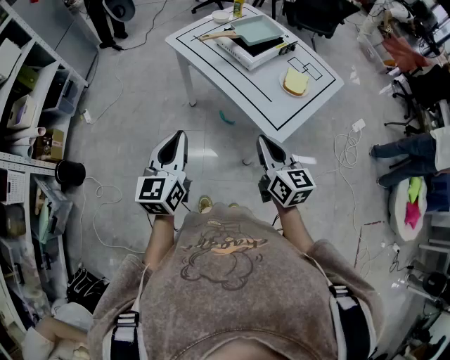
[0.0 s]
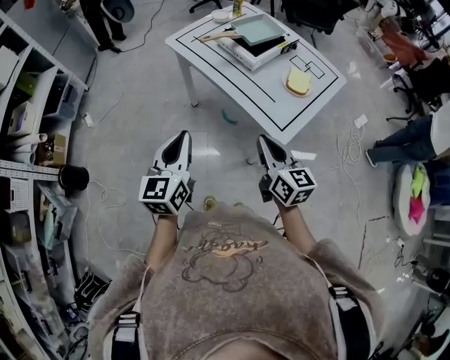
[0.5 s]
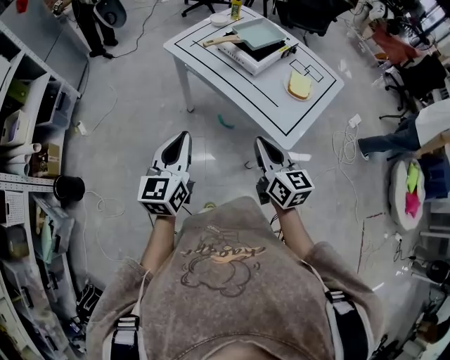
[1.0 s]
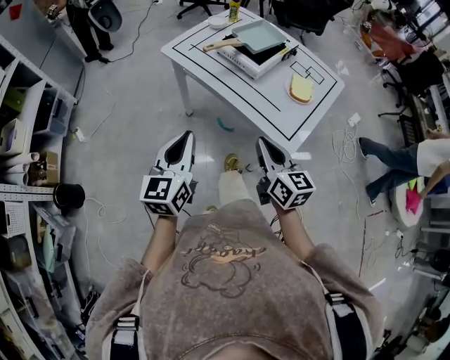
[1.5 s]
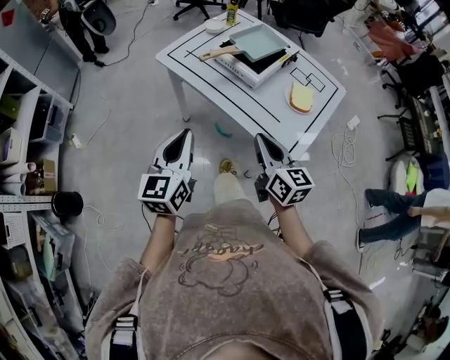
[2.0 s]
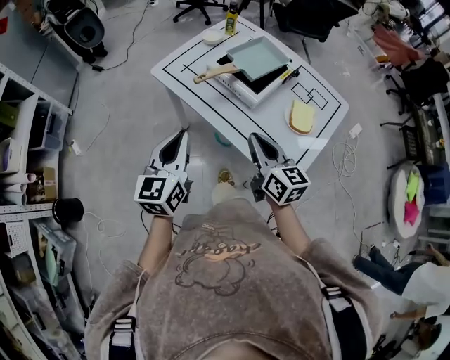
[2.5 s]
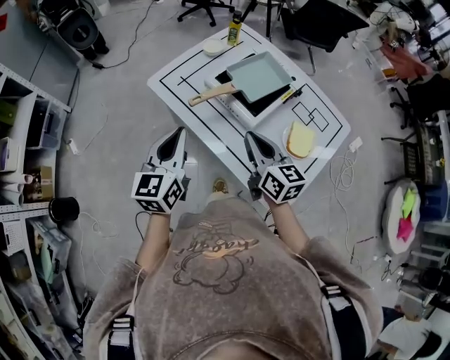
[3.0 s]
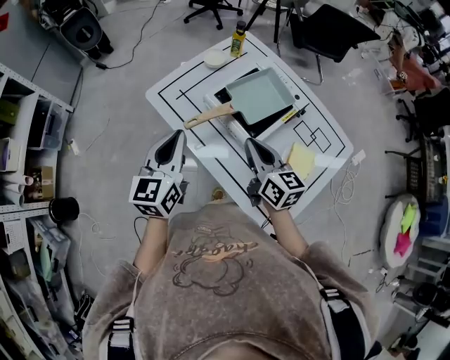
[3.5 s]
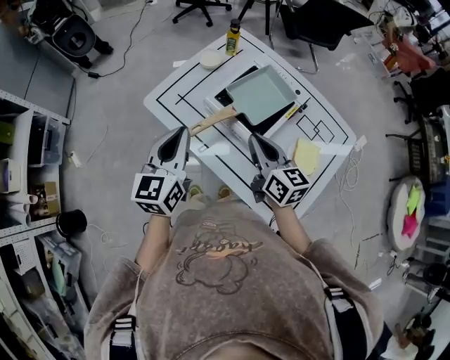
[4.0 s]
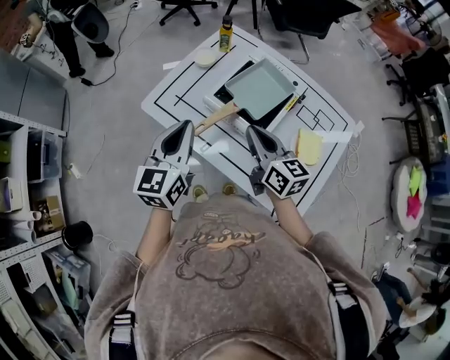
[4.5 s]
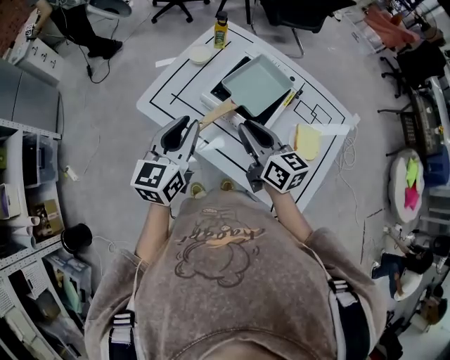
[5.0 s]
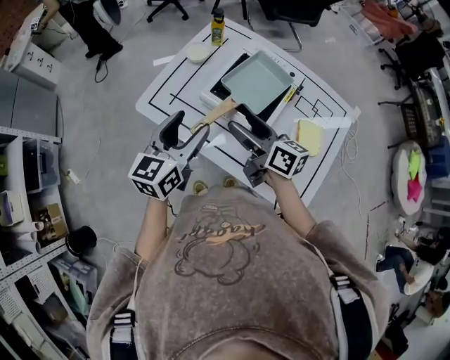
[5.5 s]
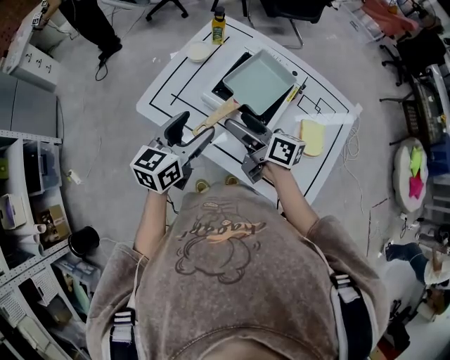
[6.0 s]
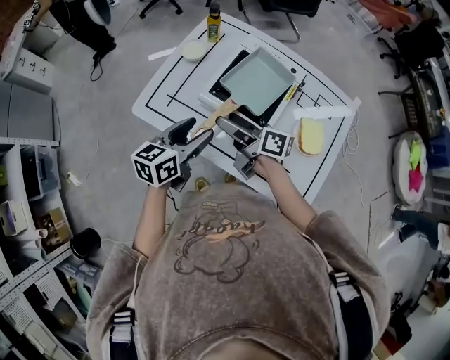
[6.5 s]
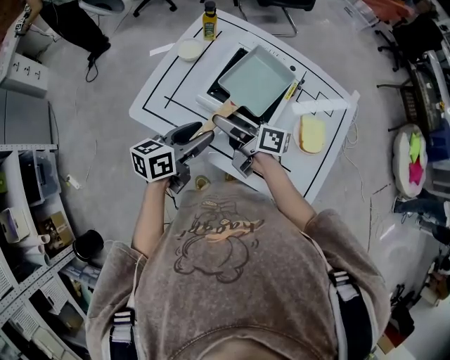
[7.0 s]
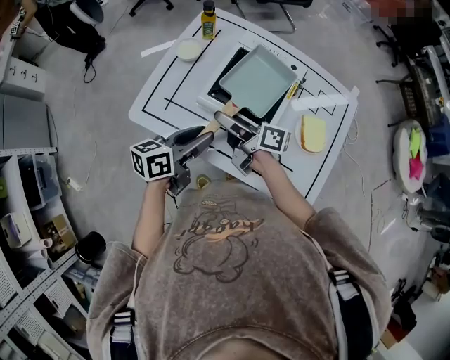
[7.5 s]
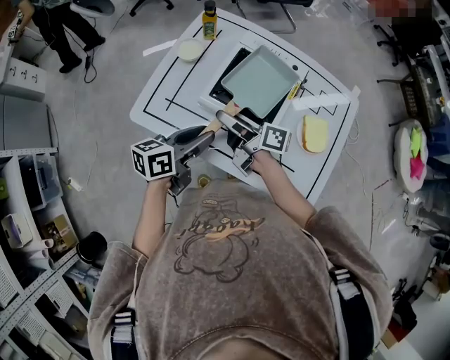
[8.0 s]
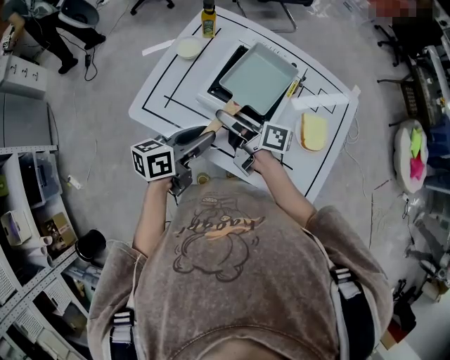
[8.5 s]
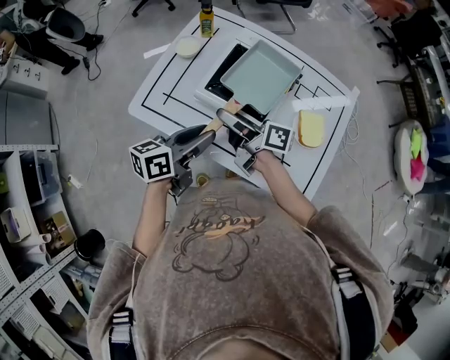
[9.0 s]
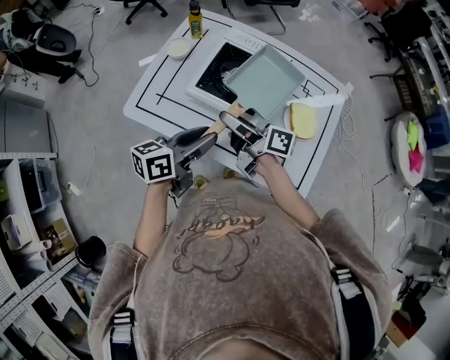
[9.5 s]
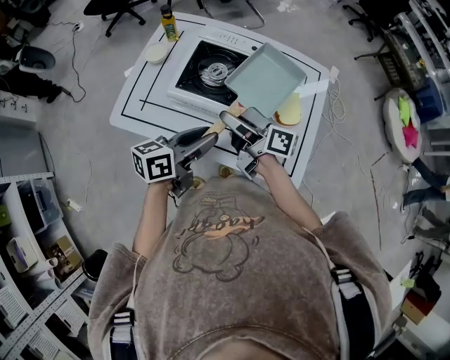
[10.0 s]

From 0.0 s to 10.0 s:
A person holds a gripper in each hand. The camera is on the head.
From 0.0 s to 2.0 s: Both grippers move forward, roughly 15 cm.
From 2.0 s to 4.0 s: Both grippers travel together forward, about 25 cm.
From 4.0 s to 6.0 s: The right gripper goes about 5 cm to the left, swivels some 30 degrees, and opens its fingers; the left gripper travels downward by about 5 cm, turns by some 30 degrees, and opens its fingers.
From 6.0 s to 8.0 s: The right gripper ends up roughly 5 cm from where it was, and closes its fingers. The left gripper travels downward by roughly 5 cm, turns by some 30 degrees, and closes.
From 8.0 s to 10.0 s: Both grippers move to the right and backward, roughly 10 cm.

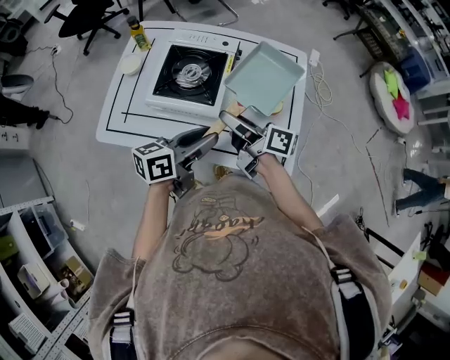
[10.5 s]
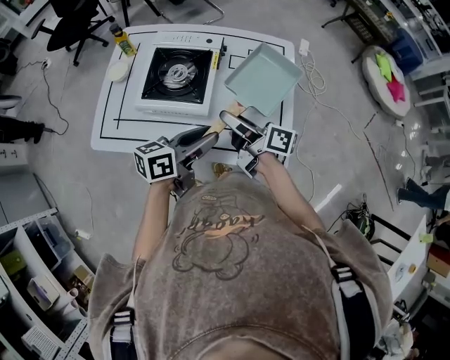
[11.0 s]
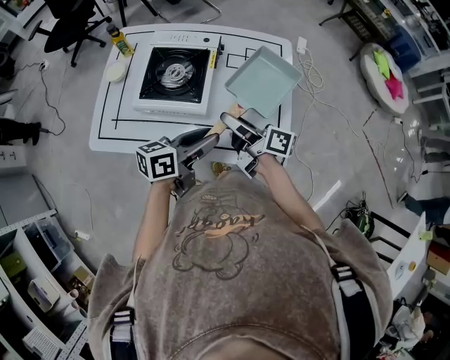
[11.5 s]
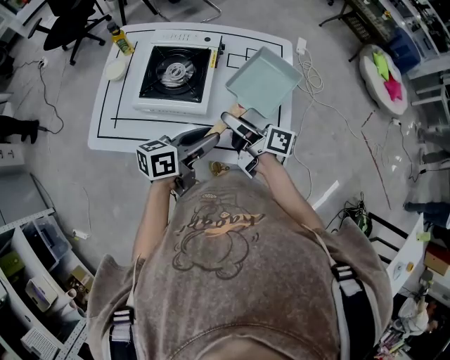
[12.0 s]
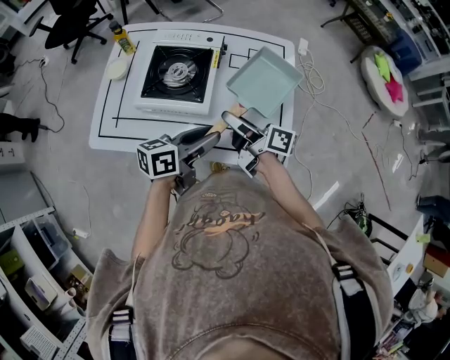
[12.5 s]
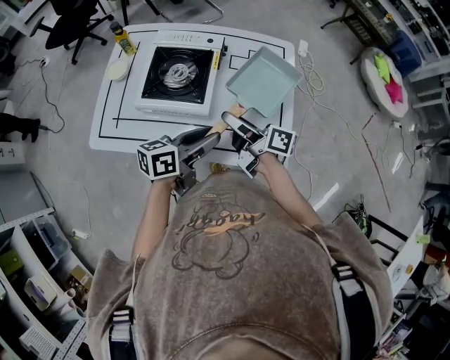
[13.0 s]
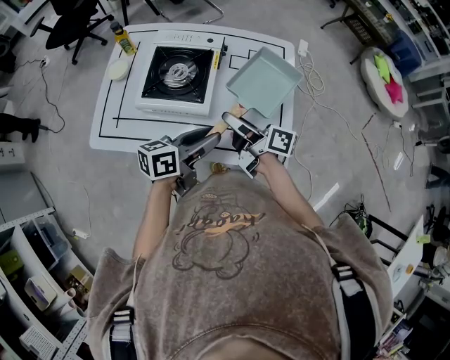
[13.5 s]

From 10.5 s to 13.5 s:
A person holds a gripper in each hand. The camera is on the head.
From 10.5 s to 12.0 s: The grippers make only small movements.
From 12.0 s to 13.5 s: Both grippers stay about where they are.

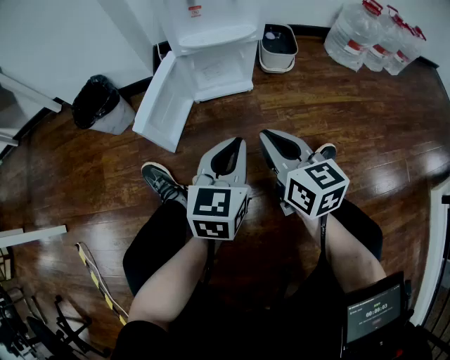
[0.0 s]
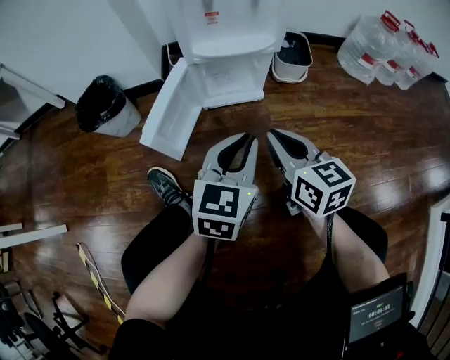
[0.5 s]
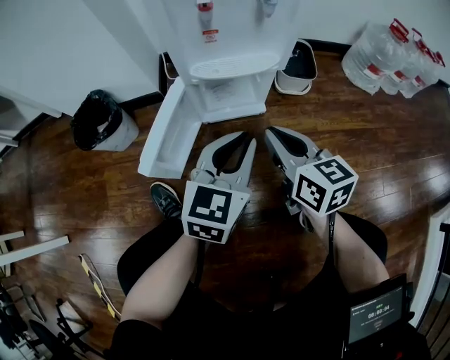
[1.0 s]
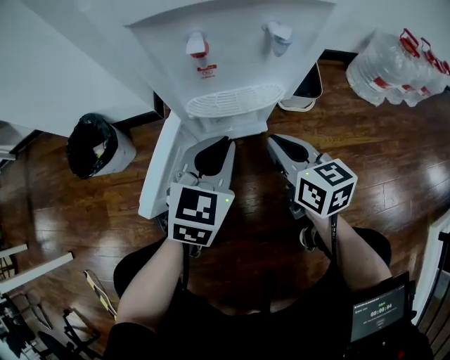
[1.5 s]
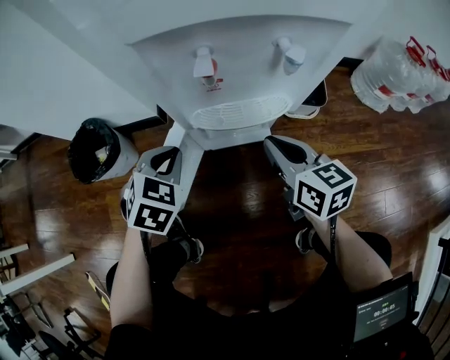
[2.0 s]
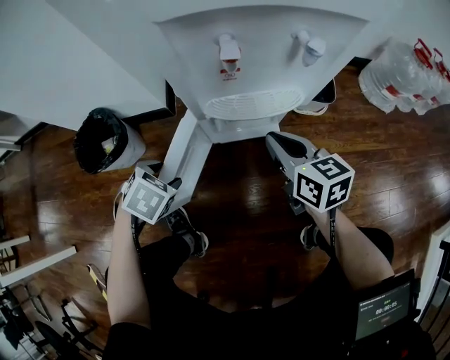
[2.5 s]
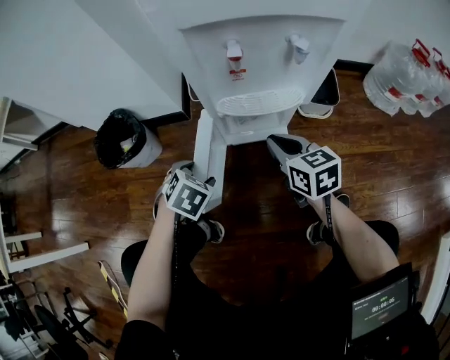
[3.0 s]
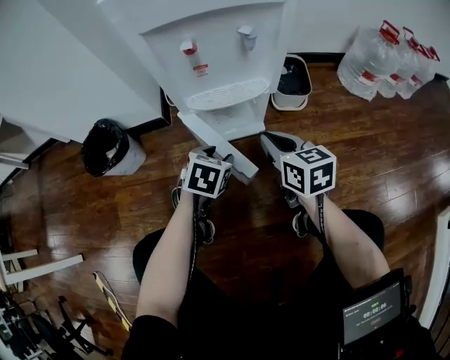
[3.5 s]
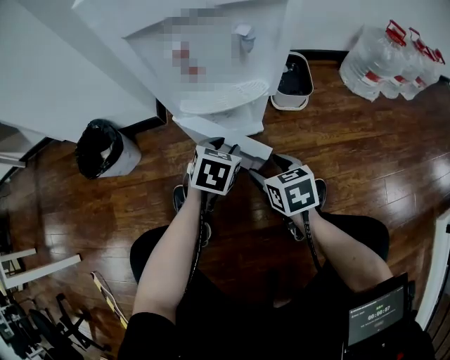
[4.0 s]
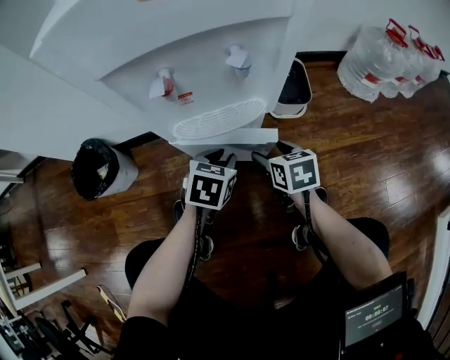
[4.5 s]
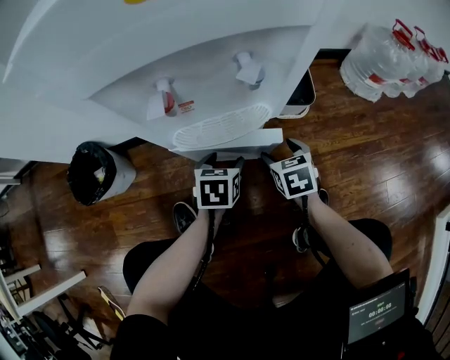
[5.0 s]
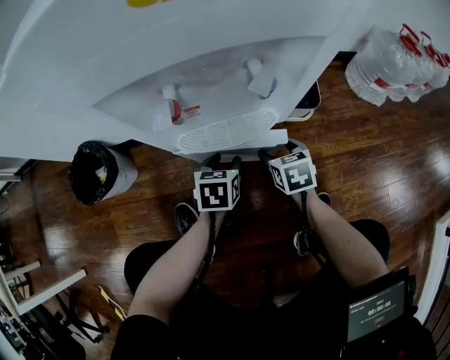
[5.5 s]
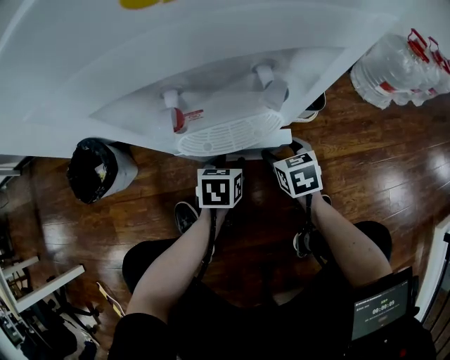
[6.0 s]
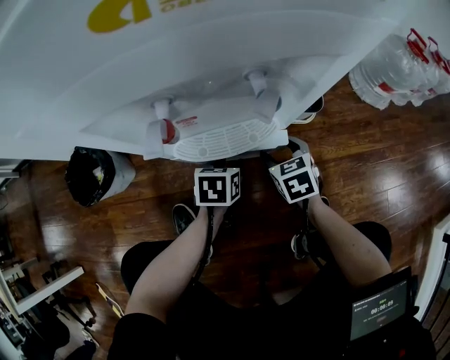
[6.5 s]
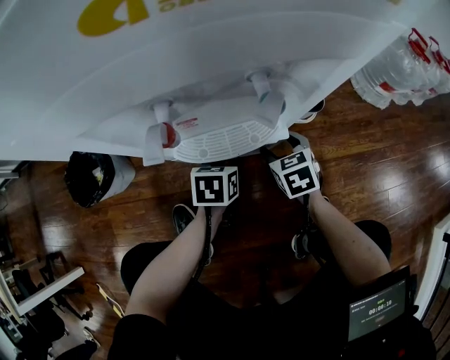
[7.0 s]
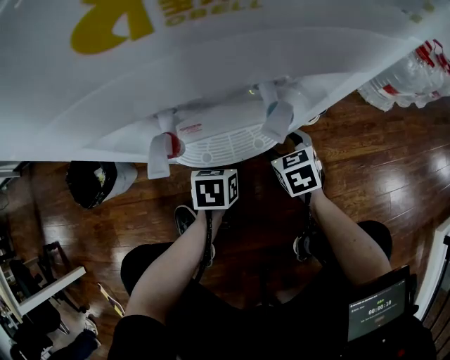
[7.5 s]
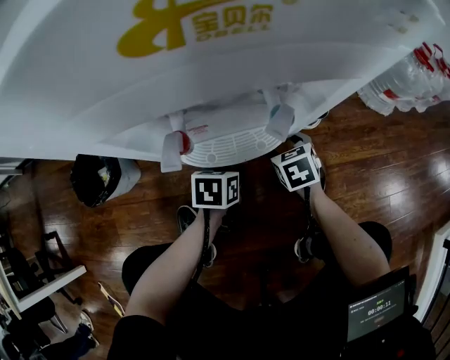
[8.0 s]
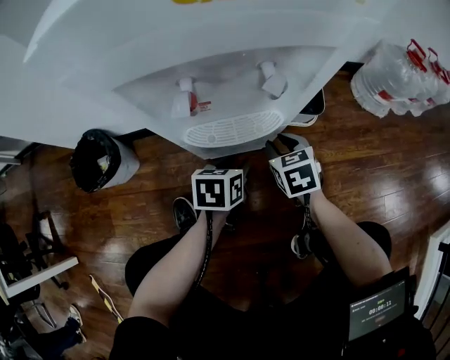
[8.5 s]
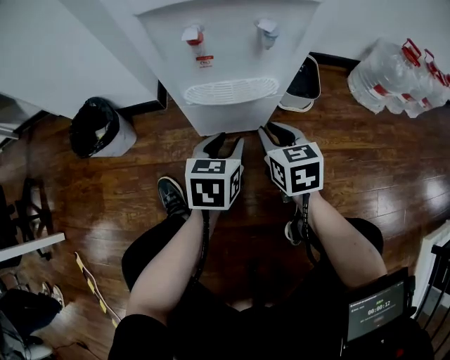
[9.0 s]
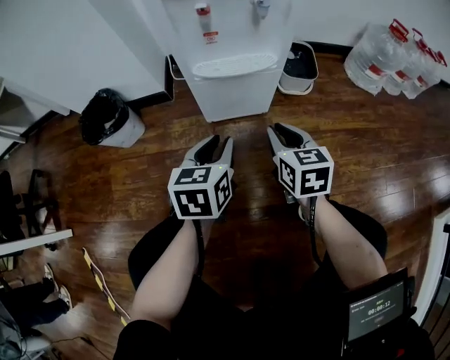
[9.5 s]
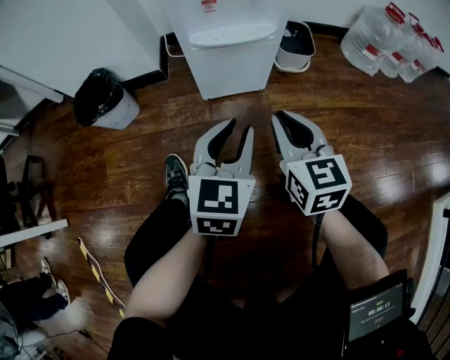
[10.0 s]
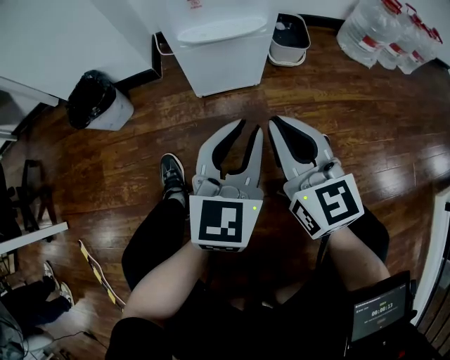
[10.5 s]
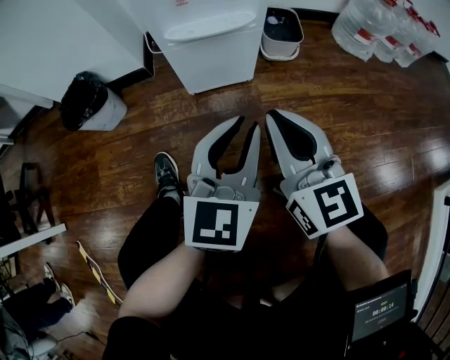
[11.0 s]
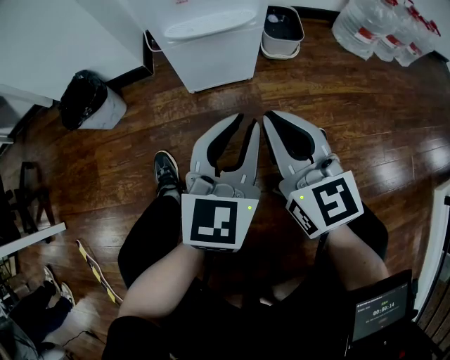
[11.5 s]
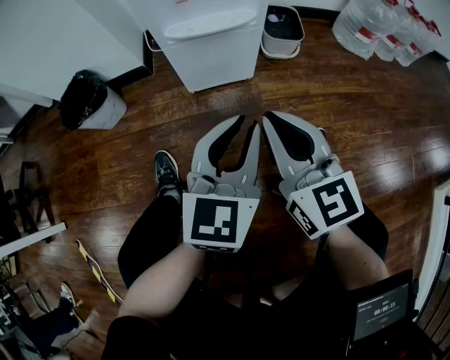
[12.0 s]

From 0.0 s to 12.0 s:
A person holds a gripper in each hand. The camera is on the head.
From 0.0 s to 2.0 s: The left gripper travels forward and to the left by approximately 30 cm, and tilts its fingers approximately 30 degrees downward. The right gripper travels forward by approximately 25 cm.
From 2.0 s to 4.0 s: The right gripper ends up some 15 cm from where it was, changes its angle by about 20 degrees, and opens up, while the left gripper shifts by approximately 15 cm, and opens its fingers.
From 4.0 s to 6.0 s: The left gripper is displaced downward and forward by approximately 10 cm, and changes its angle by approximately 20 degrees. The right gripper heads forward and downward, covering about 15 cm.
From 6.0 s to 8.0 s: There are only small adjustments of the grippers.
From 8.0 s to 10.0 s: Both grippers travel together backward and upward, roughly 30 cm. The left gripper points its fingers about 30 degrees further upward. The right gripper angles its fingers upward, by approximately 40 degrees, and closes.
From 10.0 s to 12.0 s: The right gripper shifts by some 5 cm, while the left gripper changes place by some 5 cm.

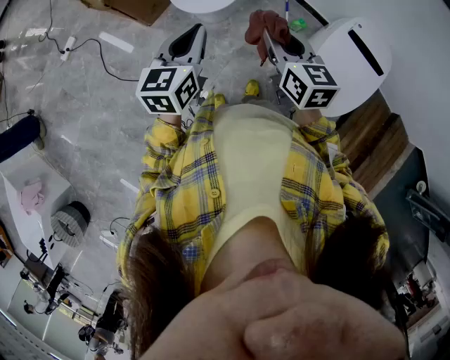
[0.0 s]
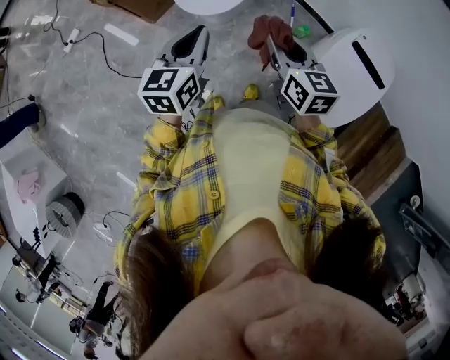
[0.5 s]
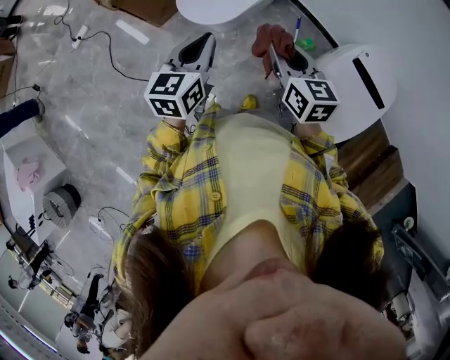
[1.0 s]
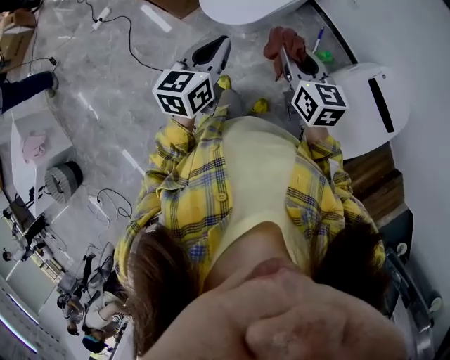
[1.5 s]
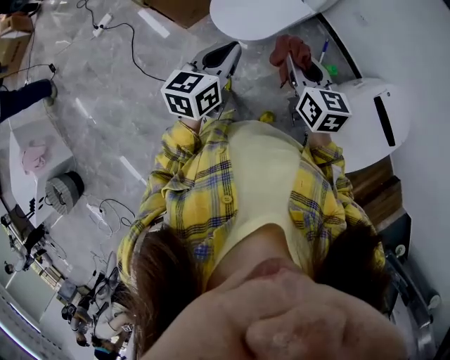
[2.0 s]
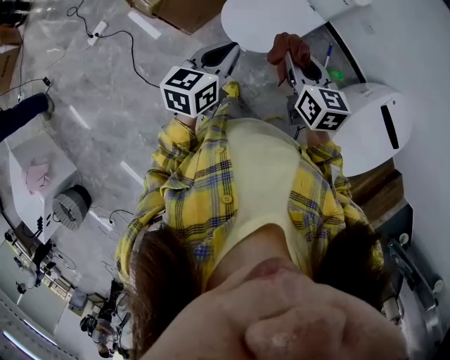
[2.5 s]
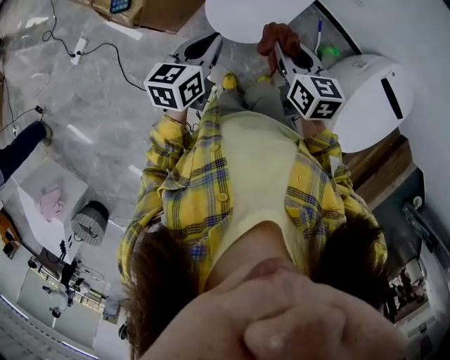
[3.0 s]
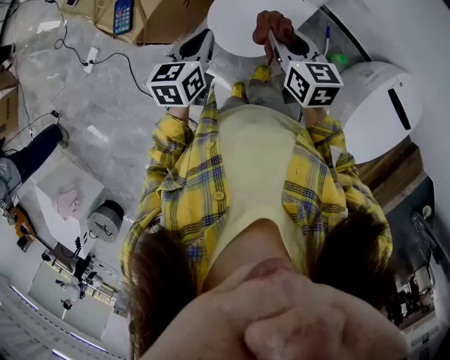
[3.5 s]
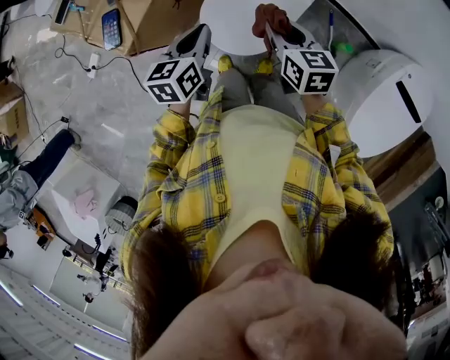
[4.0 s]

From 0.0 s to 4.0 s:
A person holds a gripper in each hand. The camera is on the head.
From 0.0 s to 2.0 s: Both grippers travel together forward, some 15 cm.
From 2.0 s to 4.0 s: The right gripper shifts about 20 cm forward. The left gripper shifts roughly 25 cm forward and to the left.